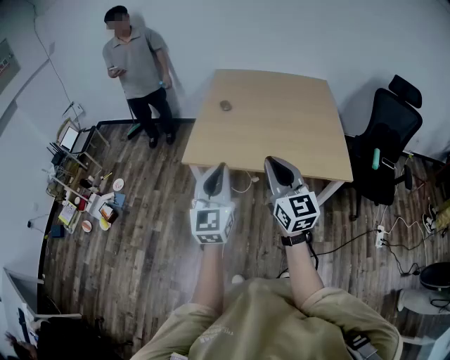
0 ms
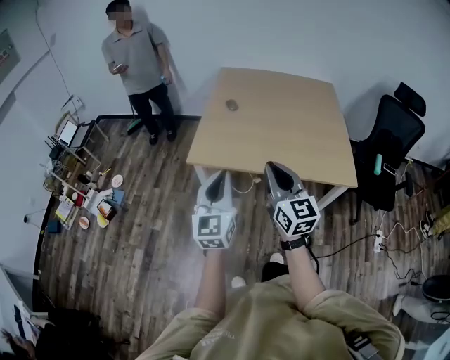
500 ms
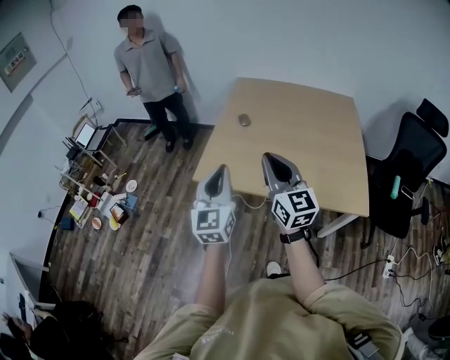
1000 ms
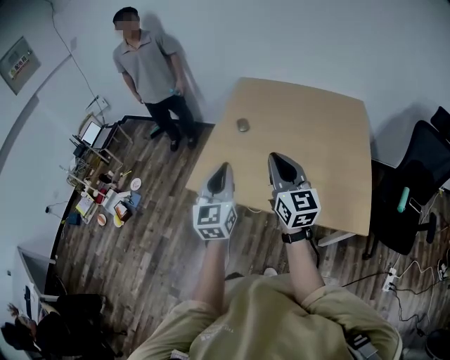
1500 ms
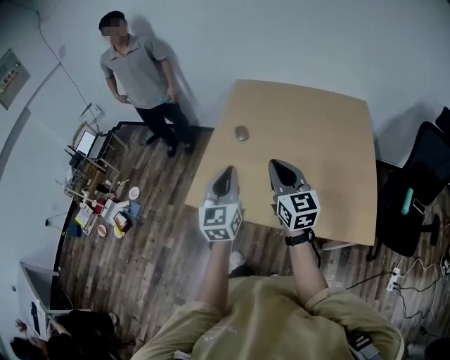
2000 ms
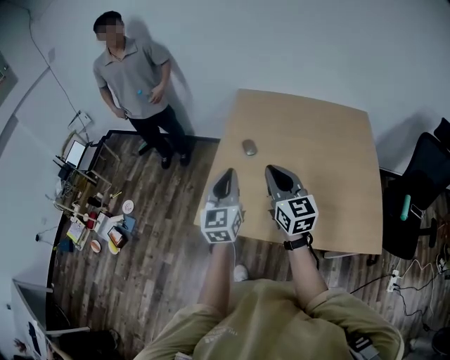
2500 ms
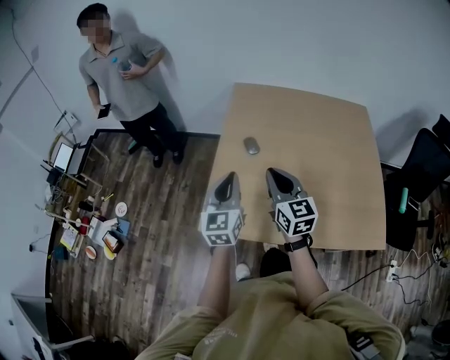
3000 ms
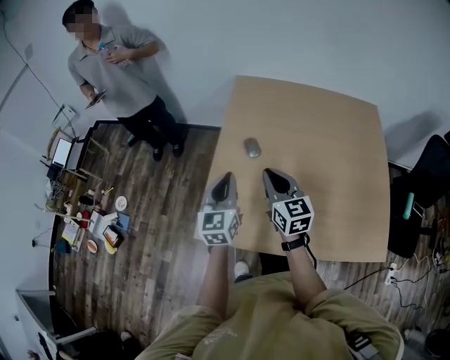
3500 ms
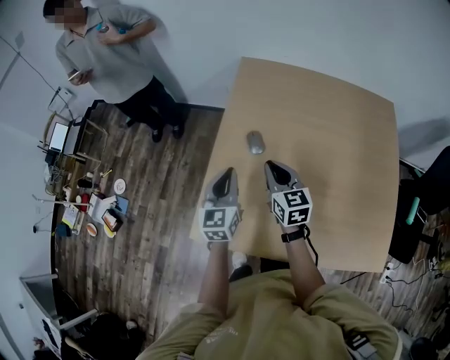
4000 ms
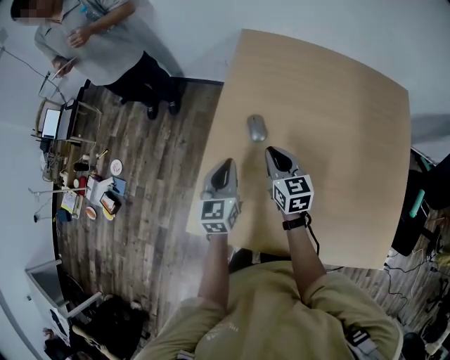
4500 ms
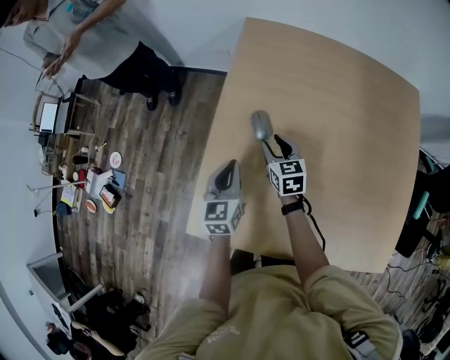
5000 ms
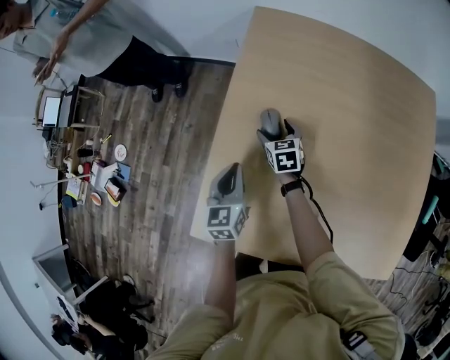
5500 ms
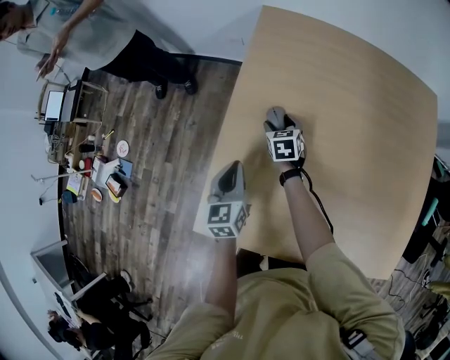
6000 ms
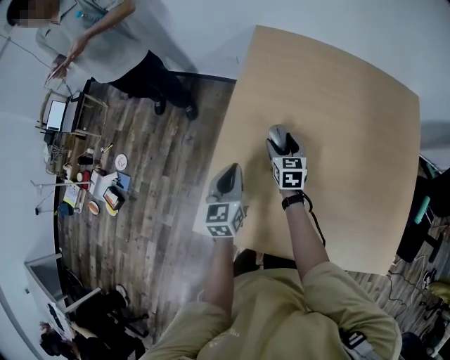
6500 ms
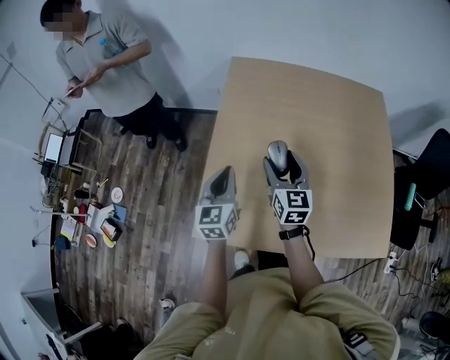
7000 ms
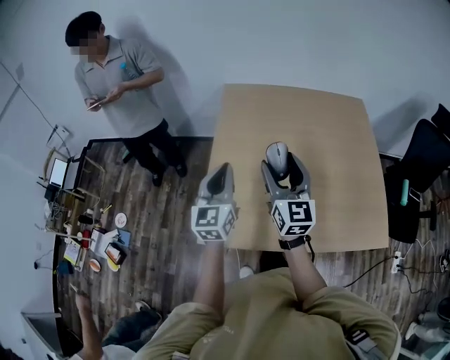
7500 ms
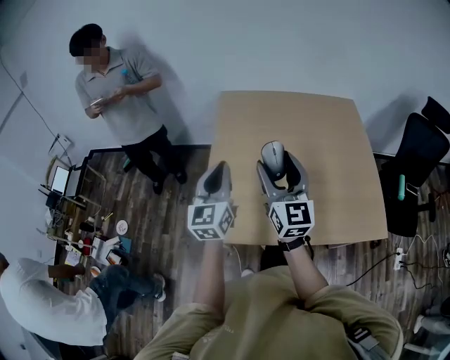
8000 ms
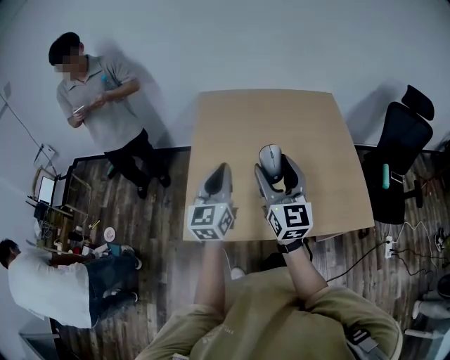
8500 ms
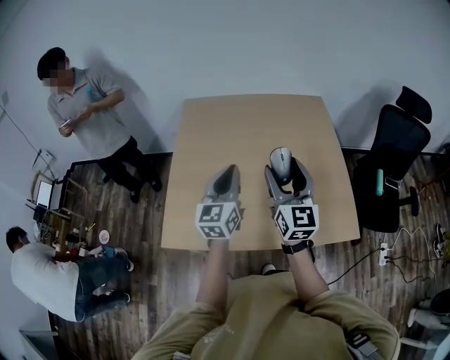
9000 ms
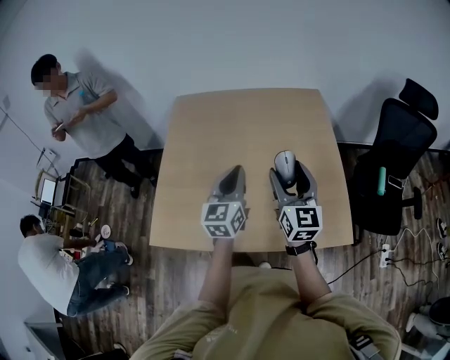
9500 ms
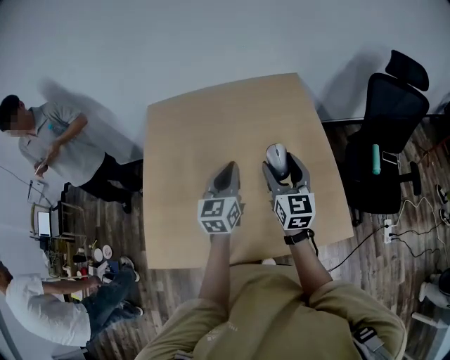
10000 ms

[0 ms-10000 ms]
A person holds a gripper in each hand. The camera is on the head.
0 ms to 2000 ms: Both grippers move forward, some 35 cm.
2000 ms to 4000 ms: The grippers both shift forward and downward by about 35 cm.
4000 ms to 6000 ms: The left gripper travels downward and forward by roughly 15 cm. Meanwhile the right gripper is displaced downward and forward by about 30 cm, swivels some 30 degrees, and opens its fingers.
6000 ms to 8000 ms: The right gripper shifts some 60 cm upward and backward, and angles its fingers upward, by about 60 degrees. Meanwhile the left gripper heads upward and backward, covering roughly 35 cm, and turns by approximately 30 degrees.
8000 ms to 10000 ms: Both grippers travel together to the right and forward, approximately 40 cm.

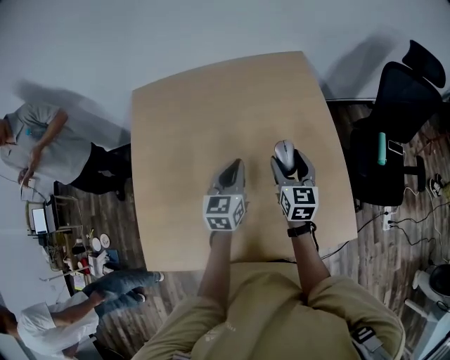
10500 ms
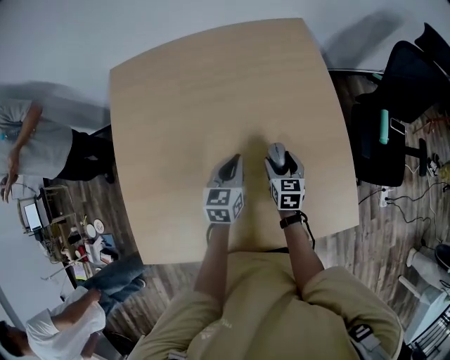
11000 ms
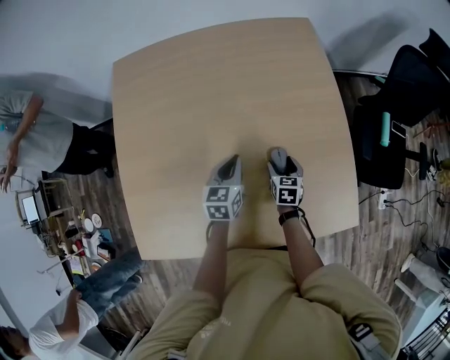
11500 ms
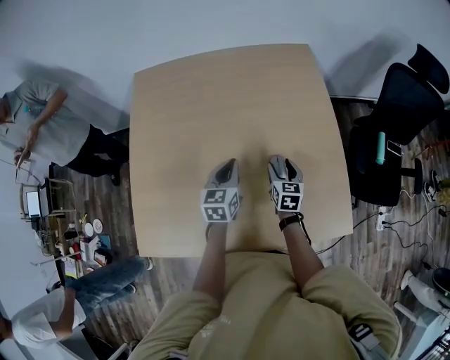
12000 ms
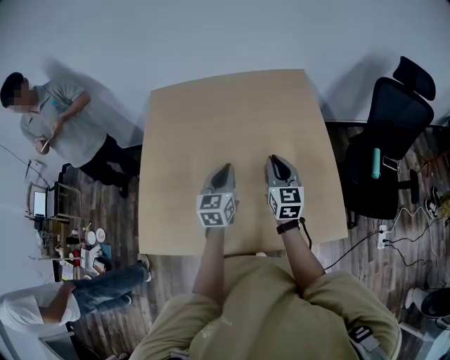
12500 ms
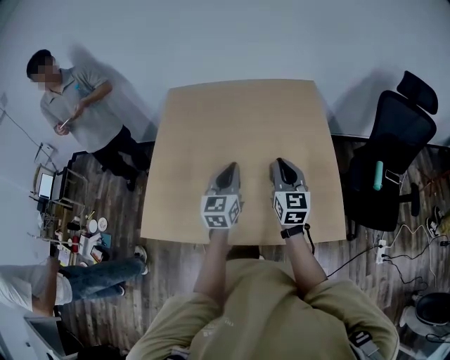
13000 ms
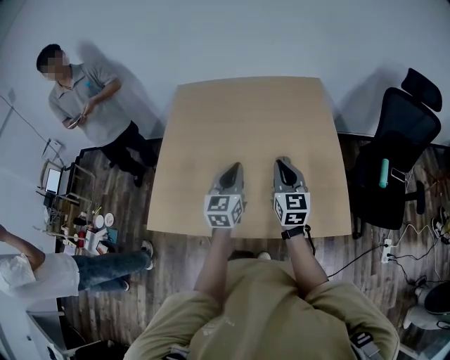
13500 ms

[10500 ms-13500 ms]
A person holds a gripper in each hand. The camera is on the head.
10500 ms to 12000 ms: The right gripper goes approximately 15 cm downward. Meanwhile the left gripper shifts roughly 5 cm downward.
12000 ms to 13500 ms: The left gripper travels backward and upward by approximately 20 cm, and rotates approximately 20 degrees; the right gripper travels upward and backward by roughly 25 cm, turns by roughly 30 degrees, and closes its fingers.

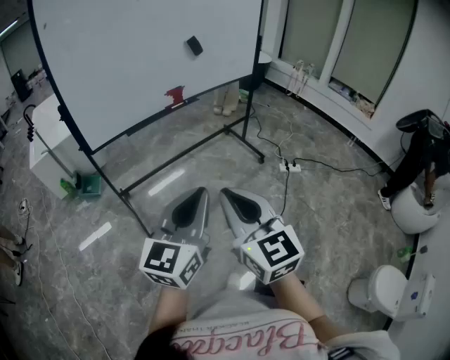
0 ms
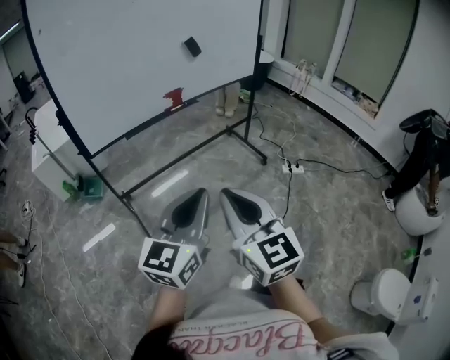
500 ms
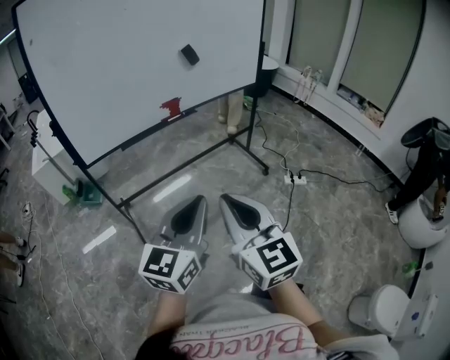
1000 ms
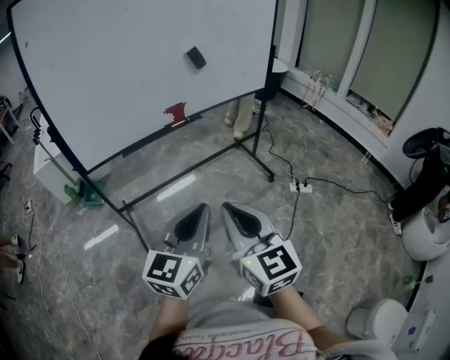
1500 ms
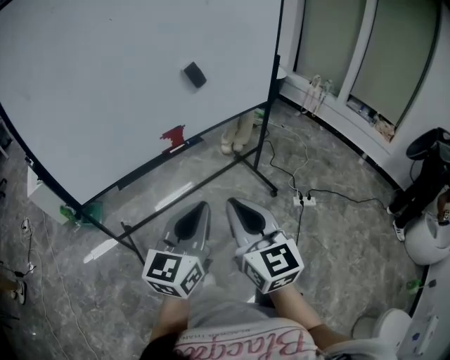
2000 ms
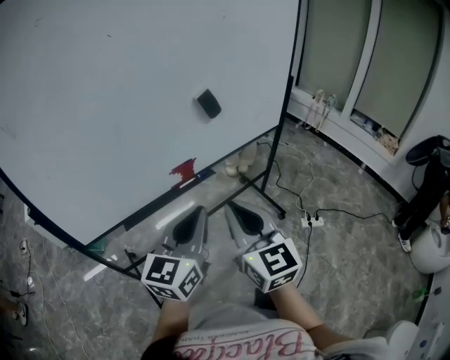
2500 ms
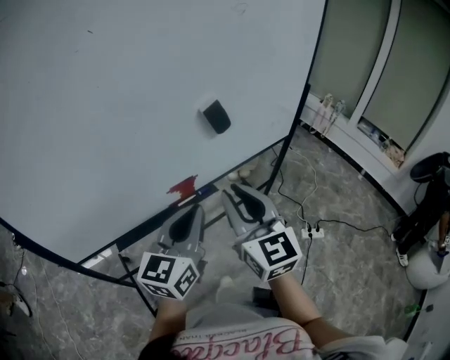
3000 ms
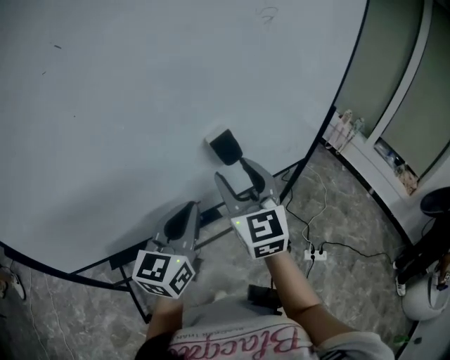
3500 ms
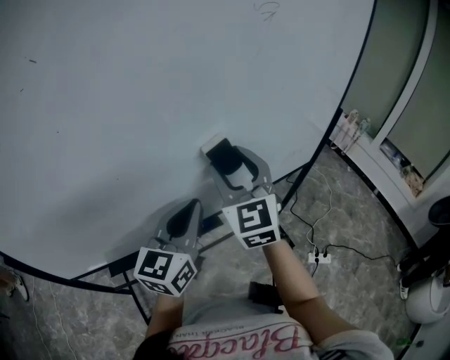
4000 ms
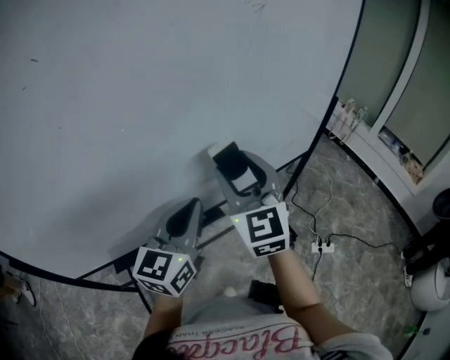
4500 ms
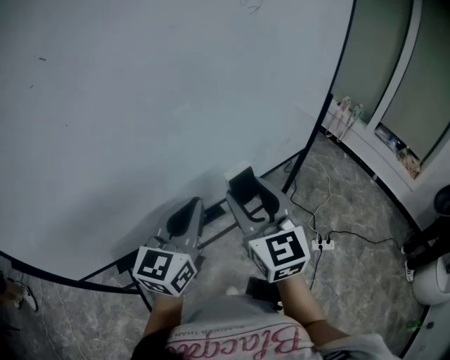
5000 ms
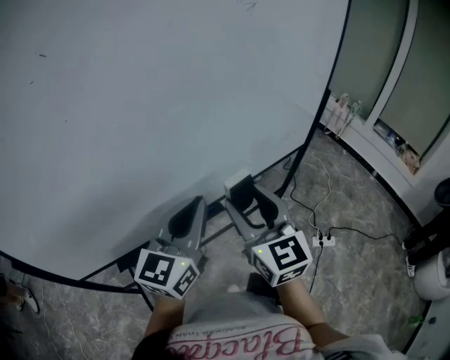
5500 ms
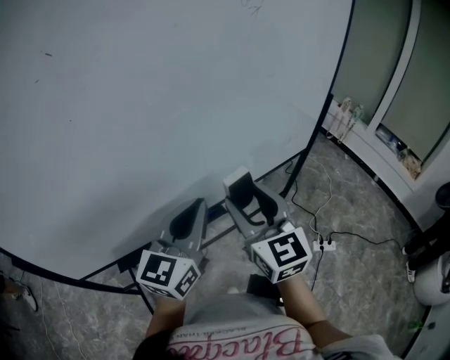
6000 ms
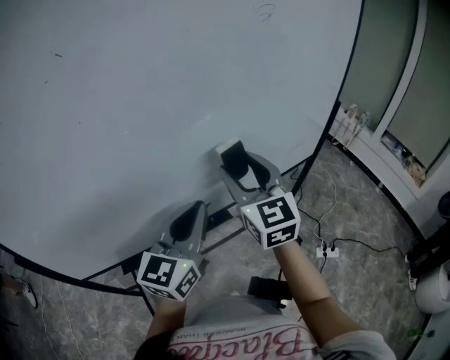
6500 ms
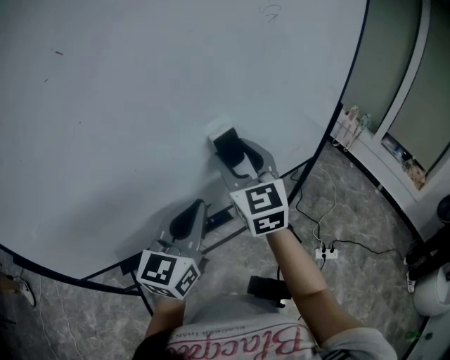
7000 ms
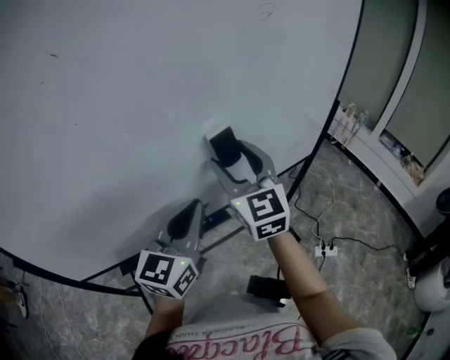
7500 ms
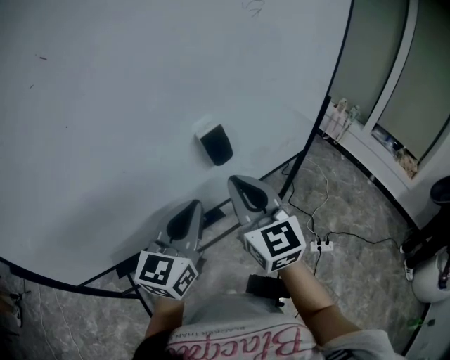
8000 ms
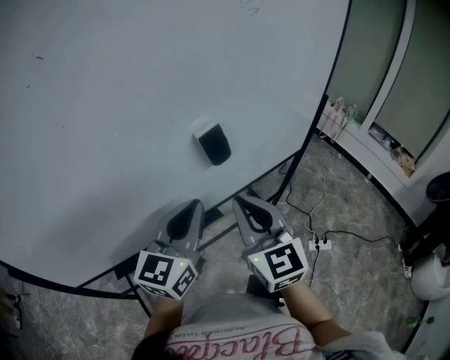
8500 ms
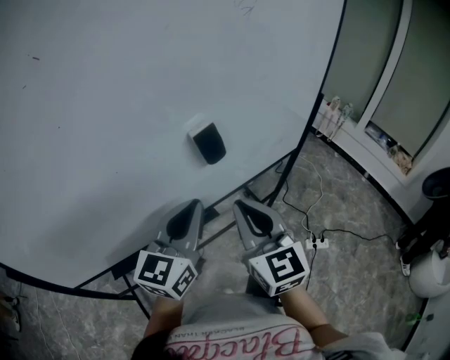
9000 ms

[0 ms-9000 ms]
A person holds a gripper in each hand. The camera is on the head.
0 ms to 2000 ms: Both grippers travel together forward, approximately 25 cm.
2000 ms to 4500 ms: The two grippers go about 40 cm forward. The right gripper changes its angle by about 20 degrees, and opens.
4500 ms to 7000 ms: The right gripper moves roughly 10 cm backward and comes back.
7000 ms to 9000 ms: The right gripper goes roughly 10 cm backward, and closes up.

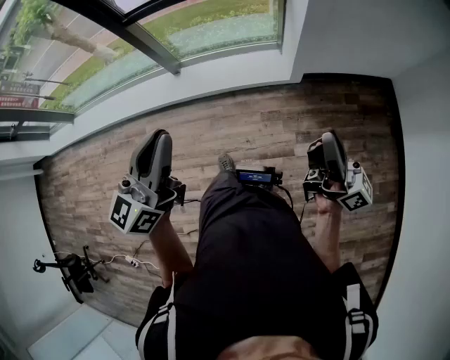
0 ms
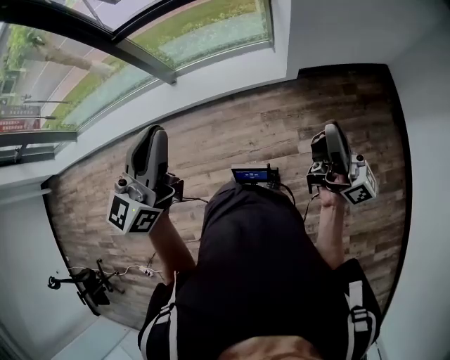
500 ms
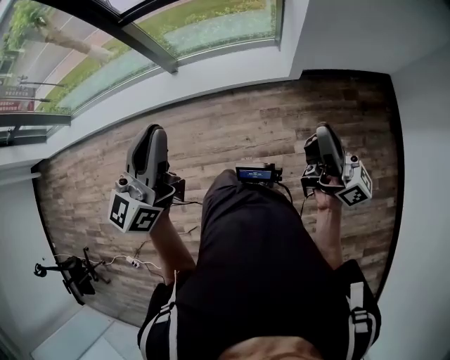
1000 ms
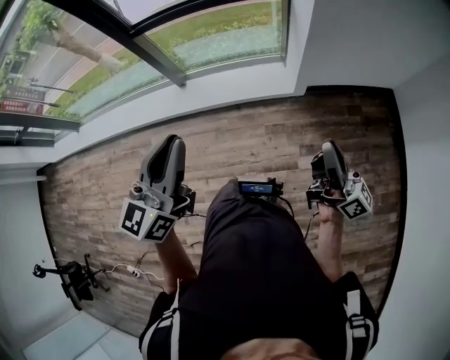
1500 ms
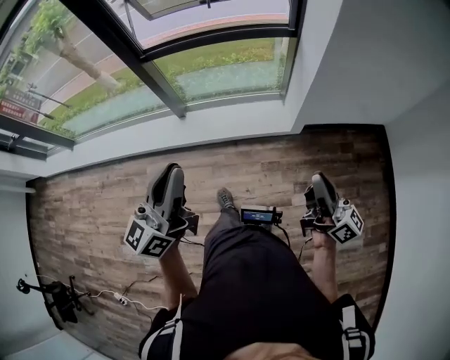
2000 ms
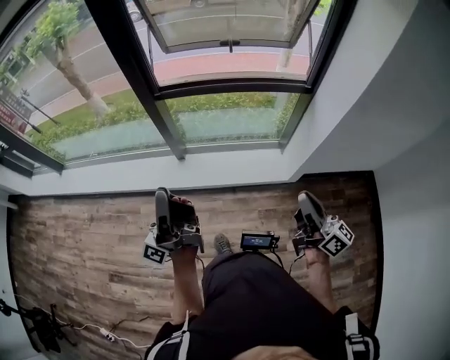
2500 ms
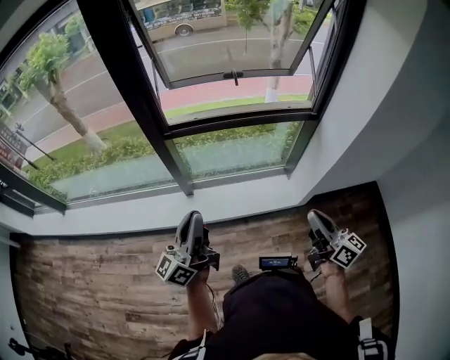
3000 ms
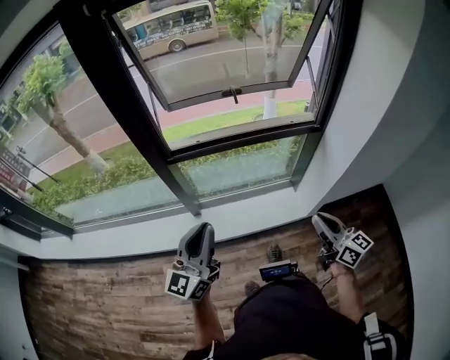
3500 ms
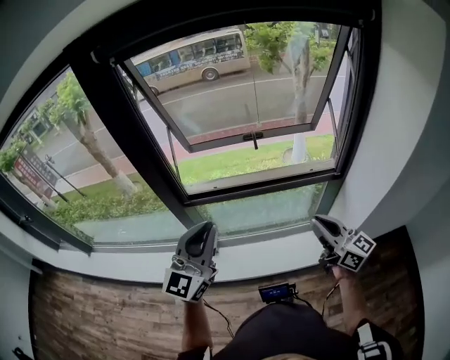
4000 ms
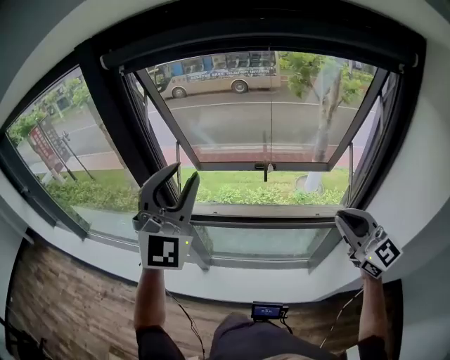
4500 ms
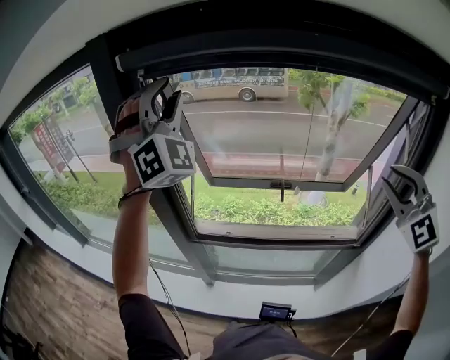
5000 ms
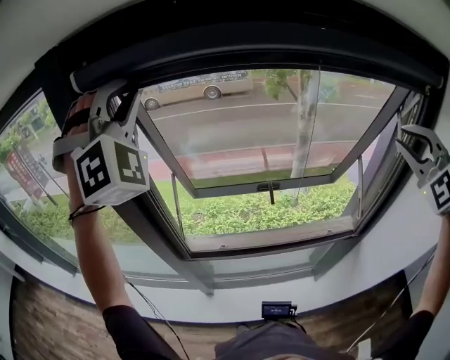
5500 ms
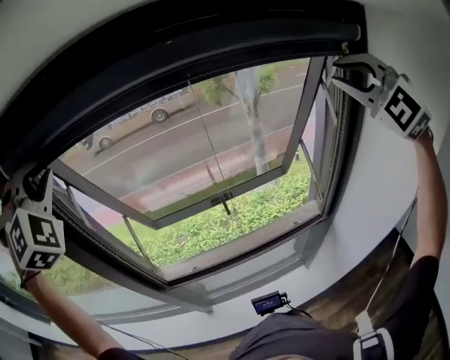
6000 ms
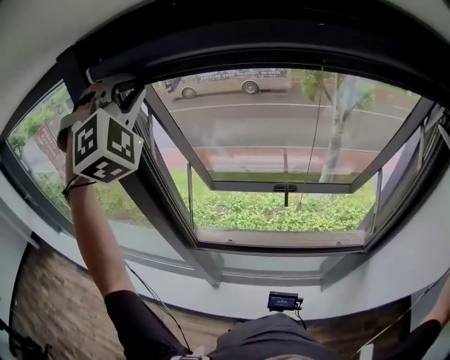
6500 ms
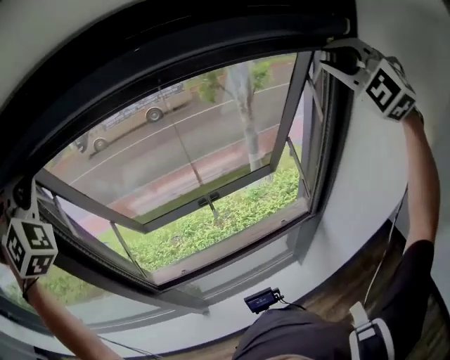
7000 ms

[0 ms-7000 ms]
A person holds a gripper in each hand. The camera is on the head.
0 ms to 2000 ms: The right gripper ends up approximately 10 cm from where it was.
2000 ms to 3500 ms: The right gripper changes place by about 30 cm, and changes its angle by about 30 degrees.
3500 ms to 5000 ms: The right gripper shifts by some 50 cm, and rolls counterclockwise, seen from behind, by about 80 degrees.
5000 ms to 7000 ms: The right gripper travels upward by approximately 15 cm, and rotates approximately 30 degrees.
